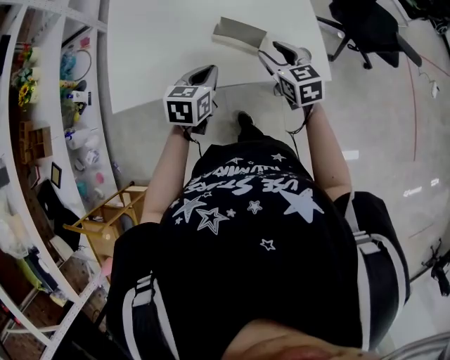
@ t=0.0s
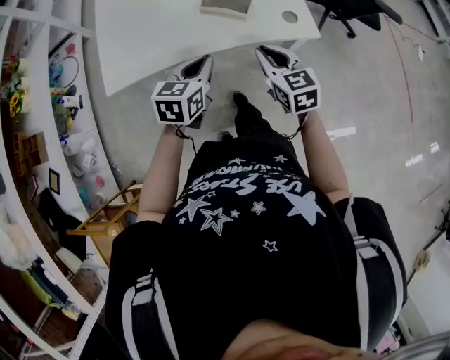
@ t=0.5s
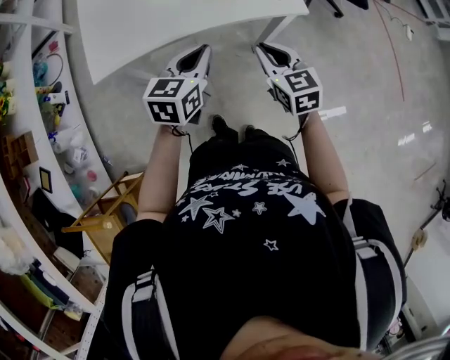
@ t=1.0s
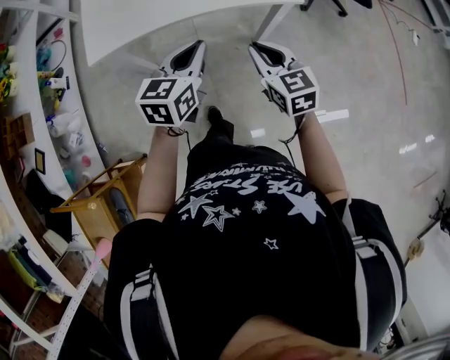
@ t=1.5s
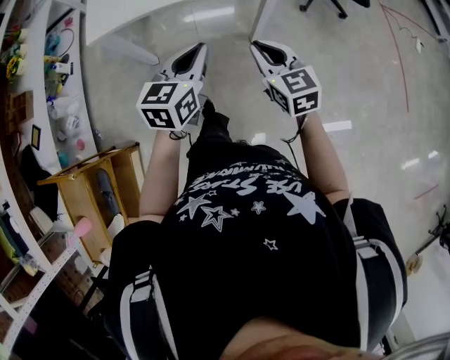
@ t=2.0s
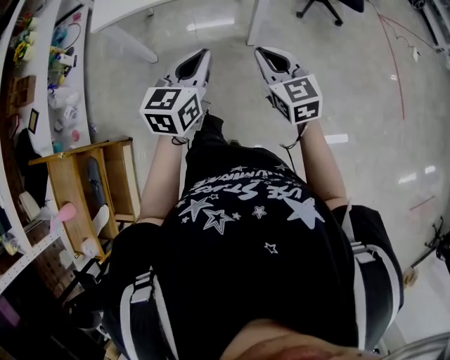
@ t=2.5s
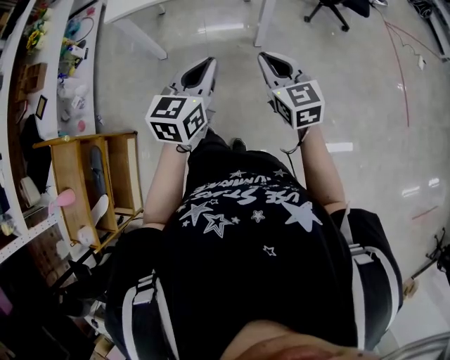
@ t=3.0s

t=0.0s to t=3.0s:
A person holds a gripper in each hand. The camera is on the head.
t=0.0s to t=1.5s: The grippers both shift backward by roughly 25 cm. The right gripper closes.
t=1.5s to t=3.0s: The left gripper moves backward, some 30 cm; the right gripper is displaced backward and to the right by about 25 cm.

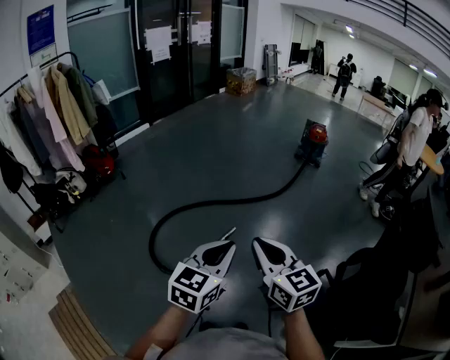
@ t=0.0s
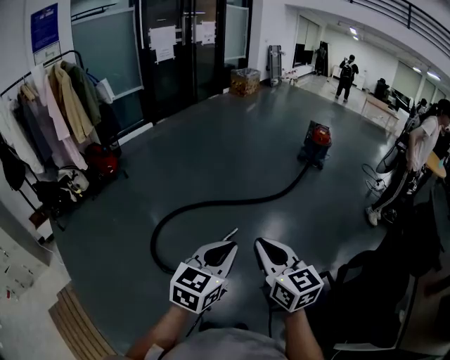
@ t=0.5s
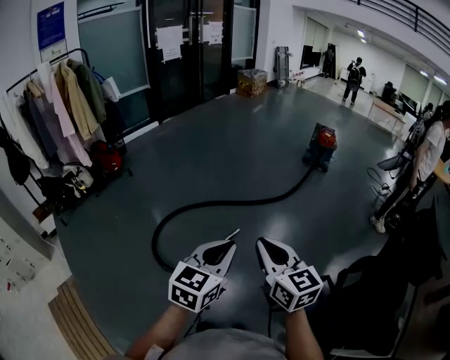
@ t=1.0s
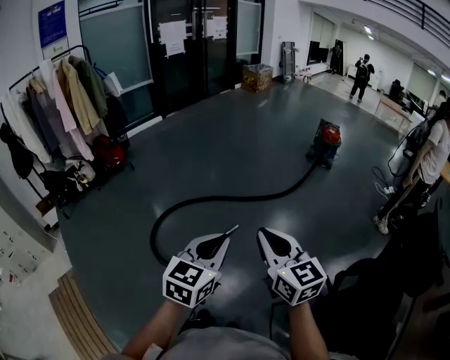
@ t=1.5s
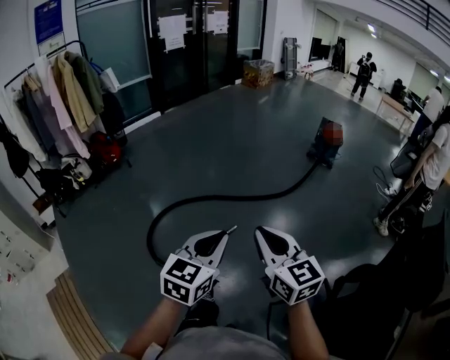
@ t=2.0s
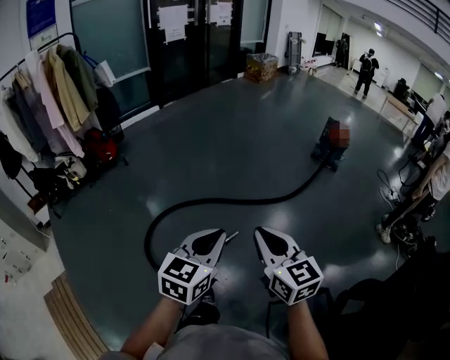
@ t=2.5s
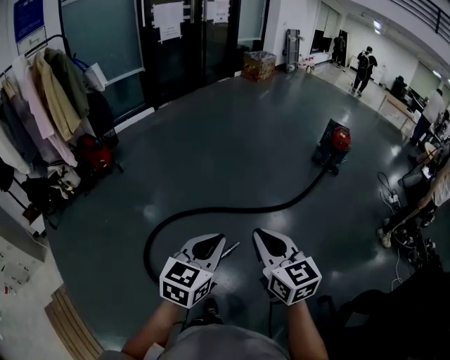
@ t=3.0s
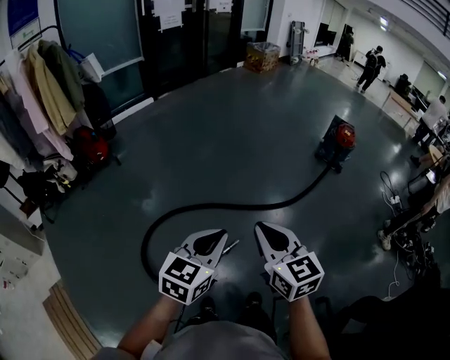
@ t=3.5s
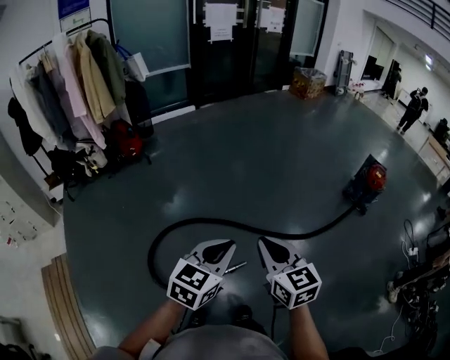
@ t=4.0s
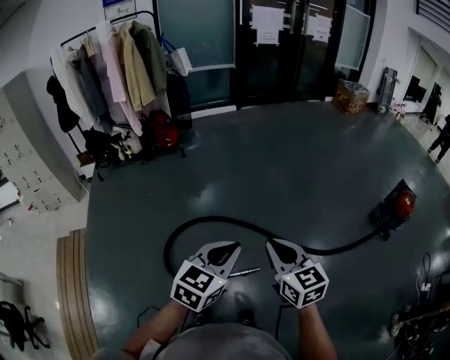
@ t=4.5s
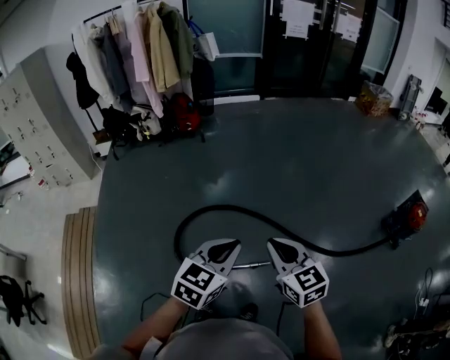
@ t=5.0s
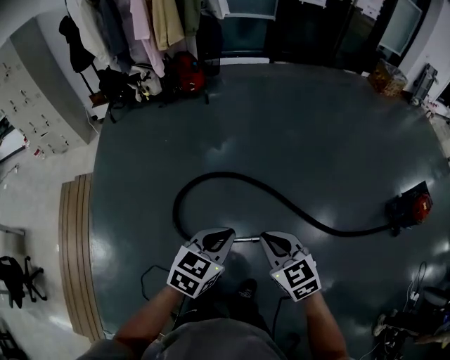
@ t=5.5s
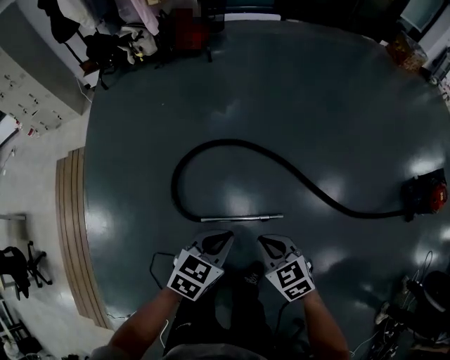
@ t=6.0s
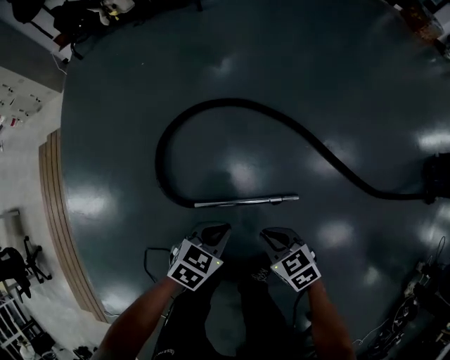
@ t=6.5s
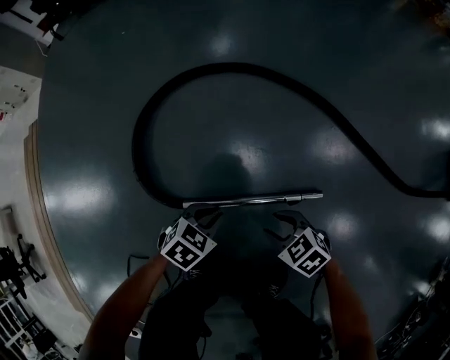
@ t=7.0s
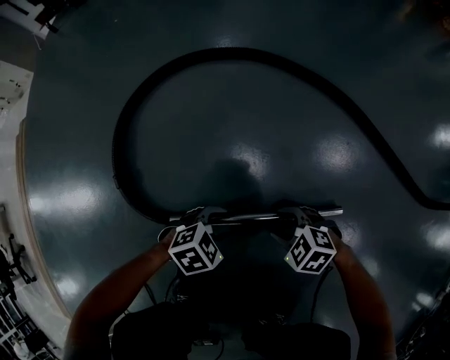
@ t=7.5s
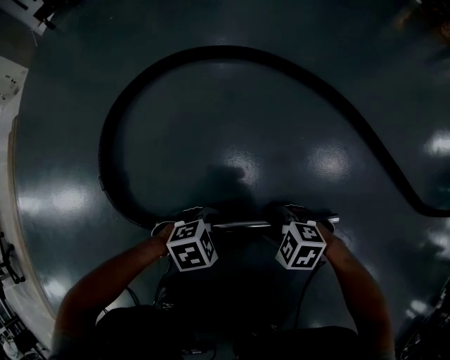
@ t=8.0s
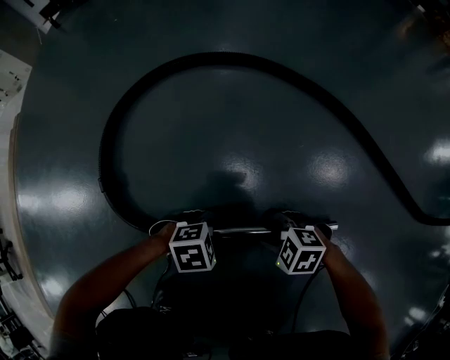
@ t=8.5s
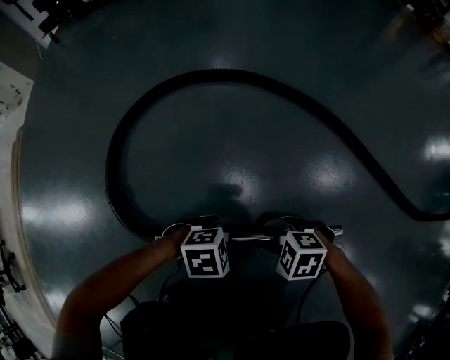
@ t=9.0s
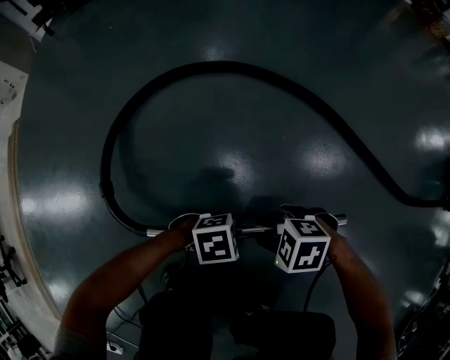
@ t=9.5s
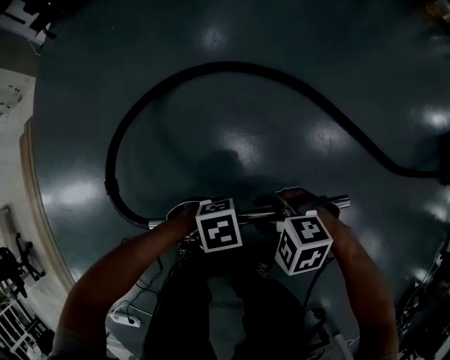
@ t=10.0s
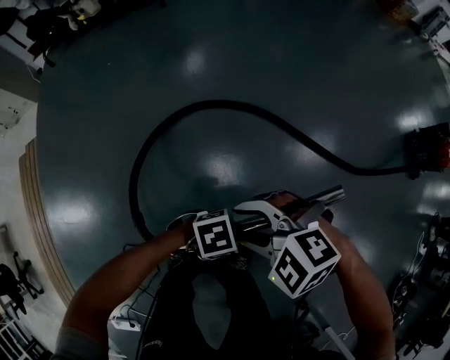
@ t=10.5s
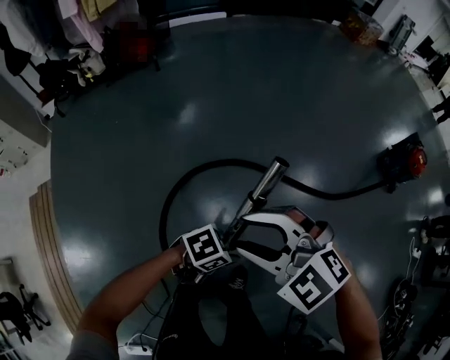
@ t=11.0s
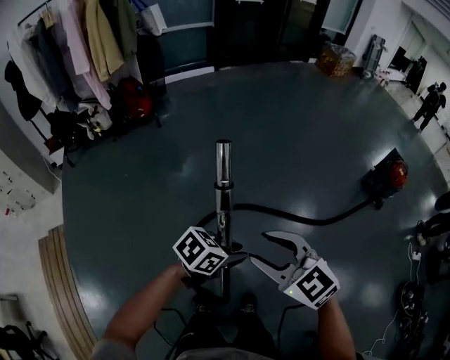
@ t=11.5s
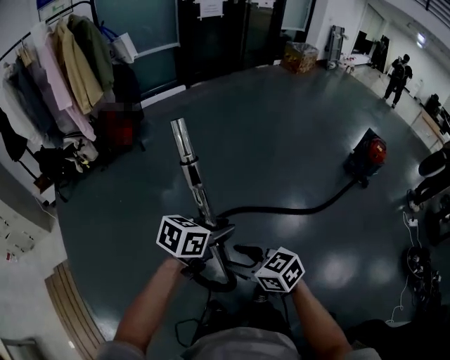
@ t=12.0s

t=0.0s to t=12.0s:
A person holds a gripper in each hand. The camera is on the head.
t=0.0s to t=2.0s: The left gripper travels forward by approximately 10 cm. The right gripper moves forward and to the right, roughly 10 cm.
t=2.0s to t=4.0s: Both grippers travel together forward, approximately 35 cm.
t=4.0s to t=6.0s: The two grippers go some 30 cm downward. The right gripper swivels approximately 50 degrees, while the left gripper turns by some 30 degrees.
t=6.0s to t=8.0s: The grippers both shift downward by about 80 cm. The right gripper rotates about 50 degrees, and opens up, while the left gripper turns by some 50 degrees, and opens its fingers.
t=8.0s to t=10.0s: Both grippers move upward, some 30 cm.
t=10.0s to t=12.0s: Both grippers move upward, some 60 cm. The right gripper points its fingers some 30 degrees further upward, while the left gripper swivels roughly 40 degrees.

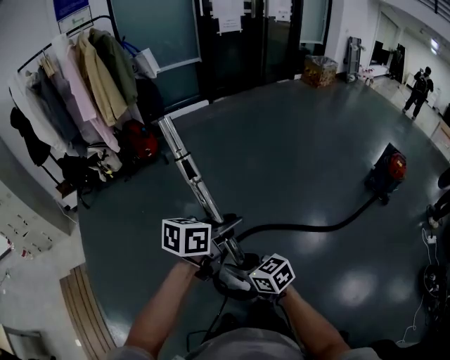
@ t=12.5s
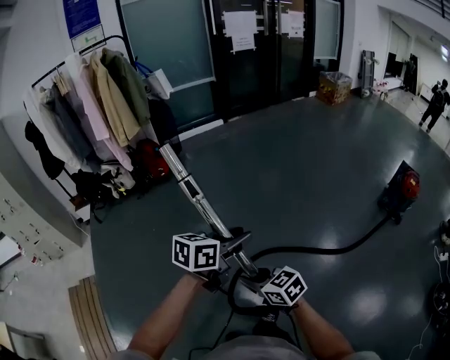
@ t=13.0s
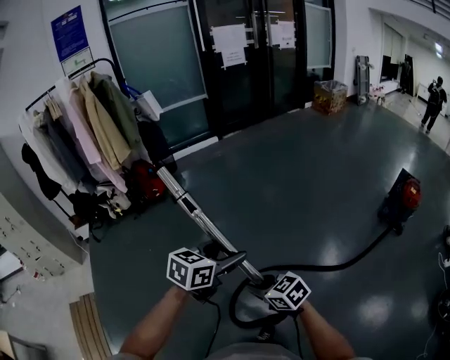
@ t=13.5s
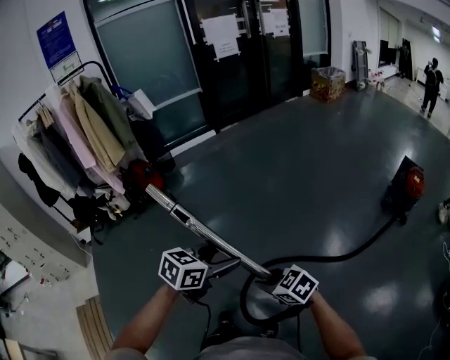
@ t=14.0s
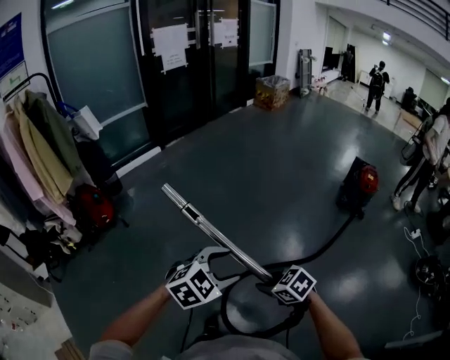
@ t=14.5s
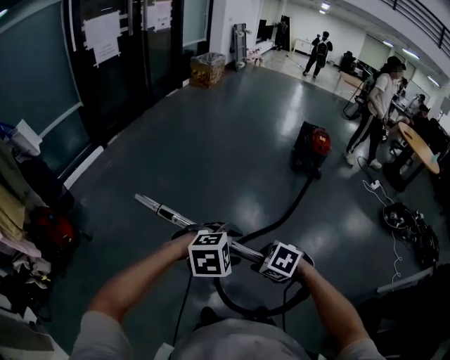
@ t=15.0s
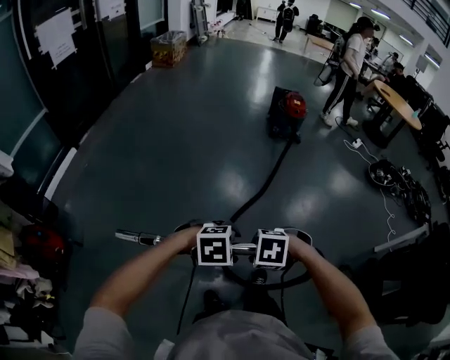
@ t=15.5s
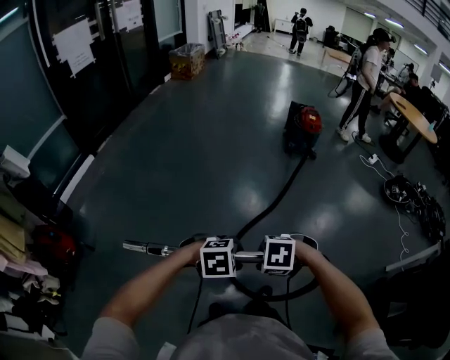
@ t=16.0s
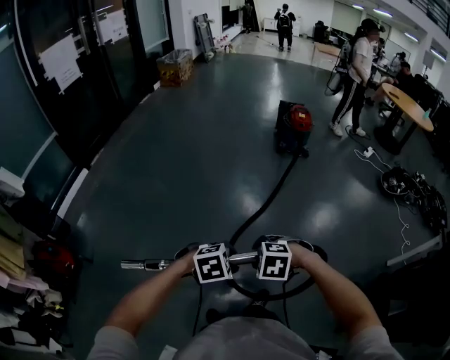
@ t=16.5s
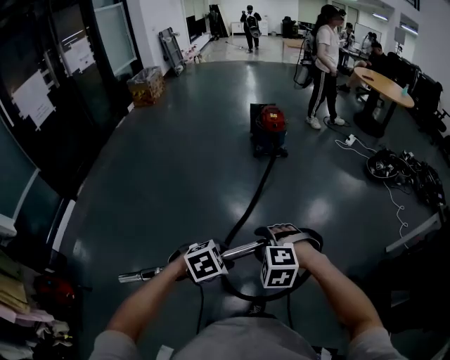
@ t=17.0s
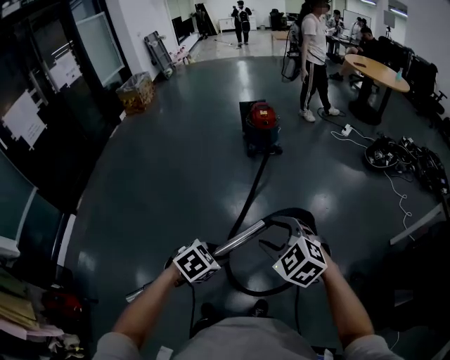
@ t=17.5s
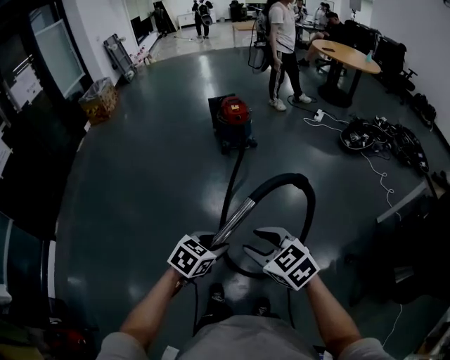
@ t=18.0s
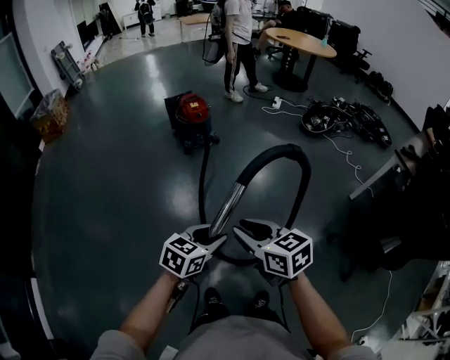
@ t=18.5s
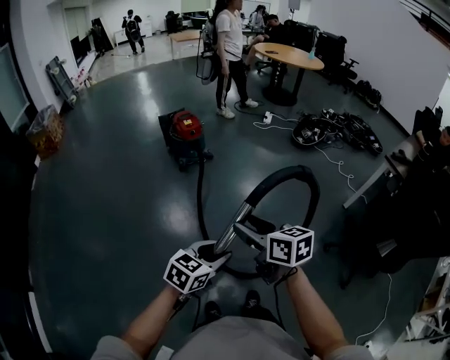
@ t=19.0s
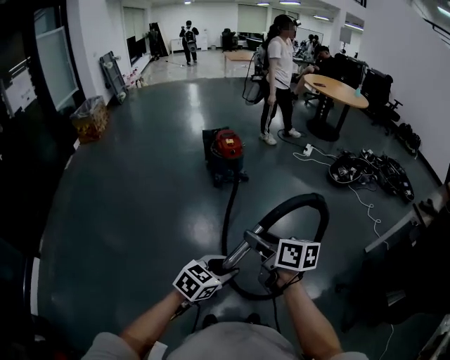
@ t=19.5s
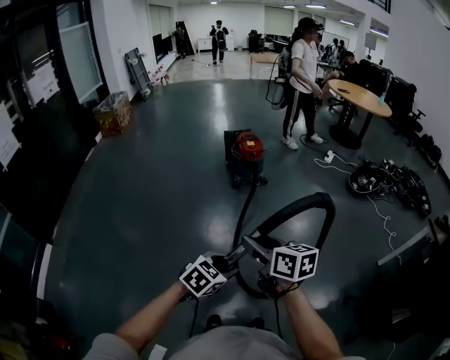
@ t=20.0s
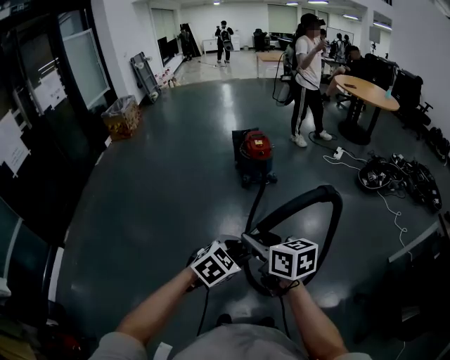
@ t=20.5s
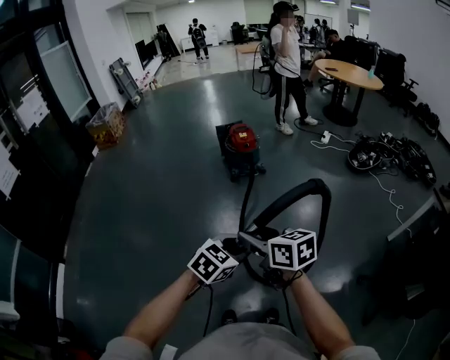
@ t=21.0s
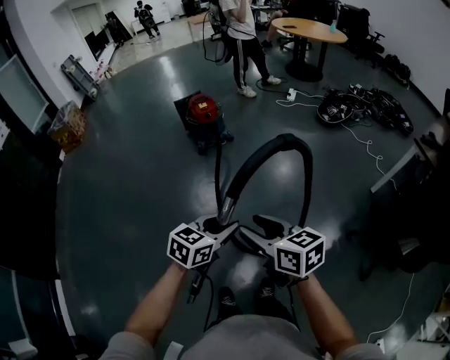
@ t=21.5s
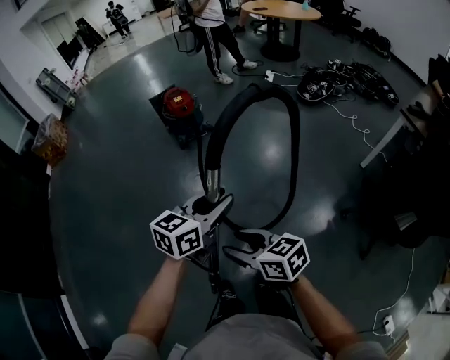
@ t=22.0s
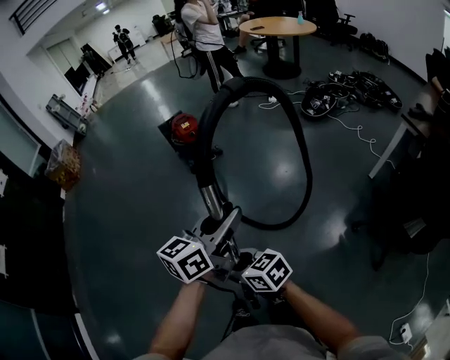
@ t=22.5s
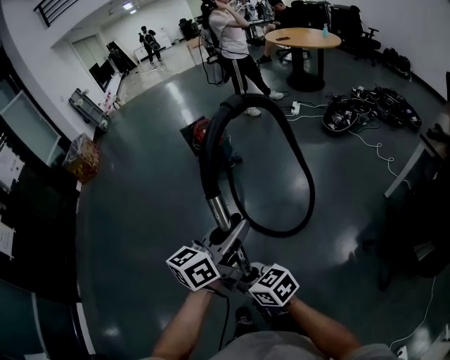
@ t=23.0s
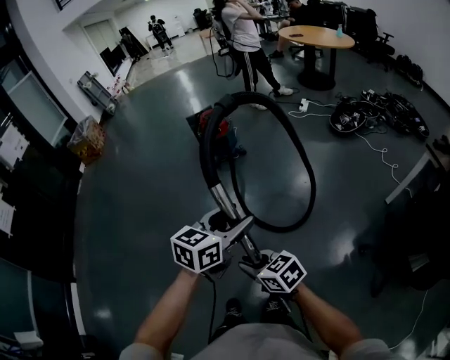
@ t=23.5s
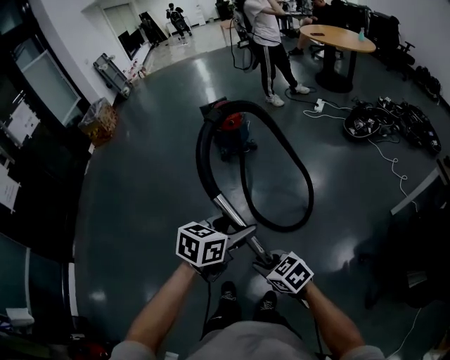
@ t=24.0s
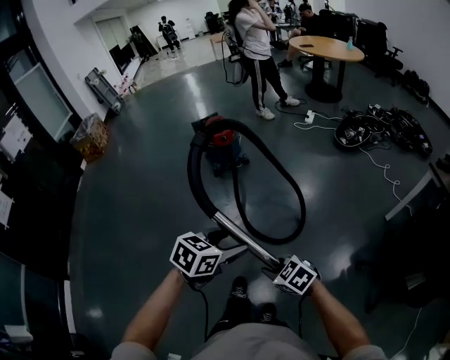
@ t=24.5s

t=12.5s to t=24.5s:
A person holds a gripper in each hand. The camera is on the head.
t=12.5s to t=14.5s: Both grippers move forward and to the right, some 25 cm. The left gripper twists some 60 degrees clockwise, seen from behind, and opens its fingers. The right gripper changes its angle by approximately 20 degrees, and closes.
t=14.5s to t=16.5s: The left gripper ends up roughly 15 cm from where it was, swivels about 50 degrees, and closes. Meanwhile the right gripper changes place by roughly 10 cm, and changes its angle by about 30 degrees.
t=16.5s to t=18.5s: The right gripper moves roughly 35 cm, and tilts its fingers approximately 50 degrees upward, while the left gripper shifts by about 35 cm, and tips its fingers upward by some 30 degrees.
t=18.5s to t=20.5s: The right gripper ends up some 10 cm from where it was, and opens, while the left gripper swivels roughly 30 degrees.
t=20.5s to t=22.5s: The right gripper is displaced downward, to the right and backward by approximately 15 cm, while the left gripper travels to the right and upward by about 20 cm, and tips its fingers upward by about 40 degrees.
t=22.5s to t=24.5s: The left gripper shifts about 10 cm downward, tips its fingers downward by roughly 40 degrees, and opens up, while the right gripper goes about 15 cm to the right and downward, turns by roughly 30 degrees, and closes.
